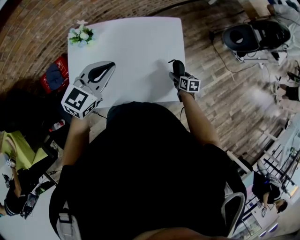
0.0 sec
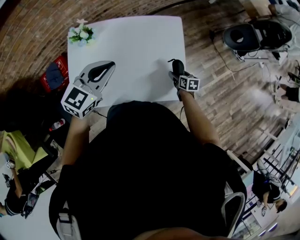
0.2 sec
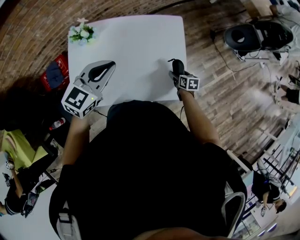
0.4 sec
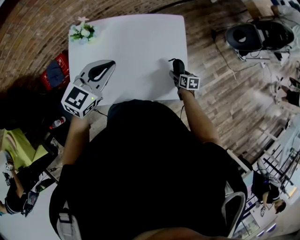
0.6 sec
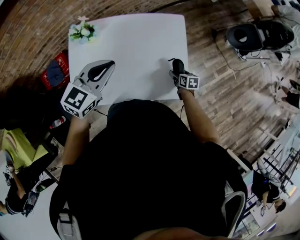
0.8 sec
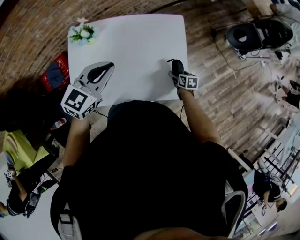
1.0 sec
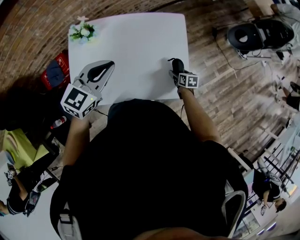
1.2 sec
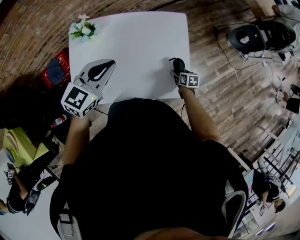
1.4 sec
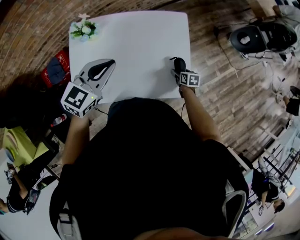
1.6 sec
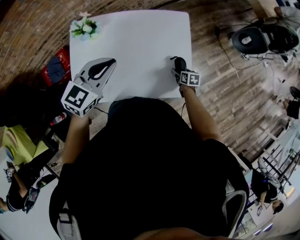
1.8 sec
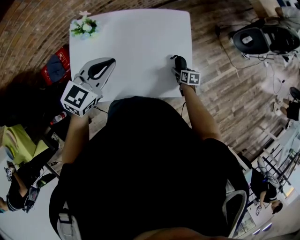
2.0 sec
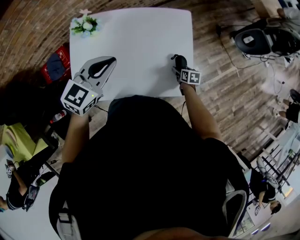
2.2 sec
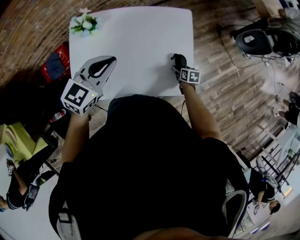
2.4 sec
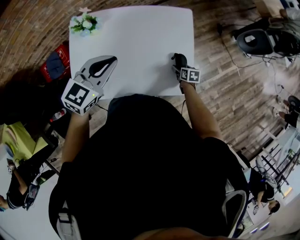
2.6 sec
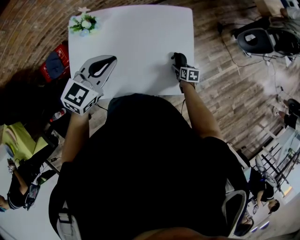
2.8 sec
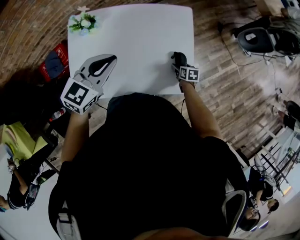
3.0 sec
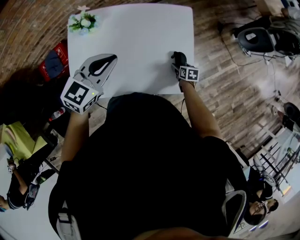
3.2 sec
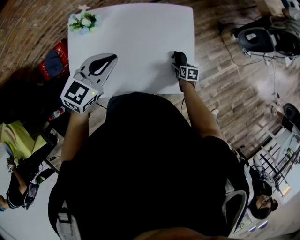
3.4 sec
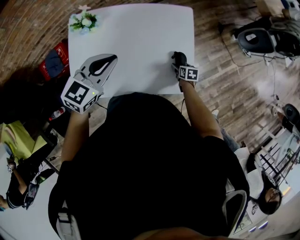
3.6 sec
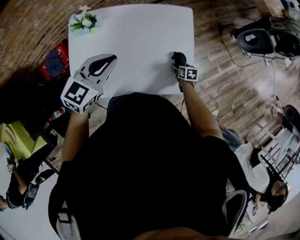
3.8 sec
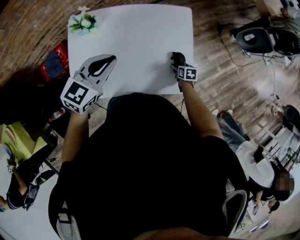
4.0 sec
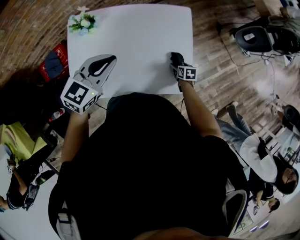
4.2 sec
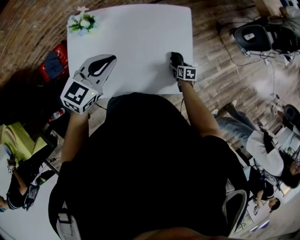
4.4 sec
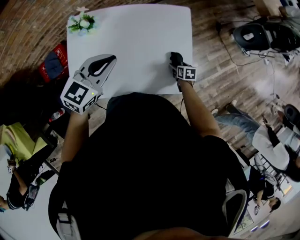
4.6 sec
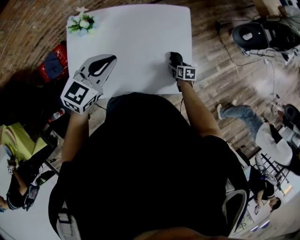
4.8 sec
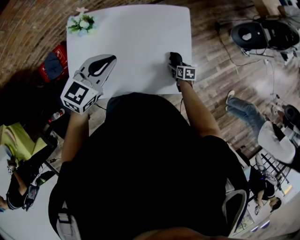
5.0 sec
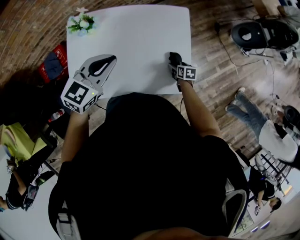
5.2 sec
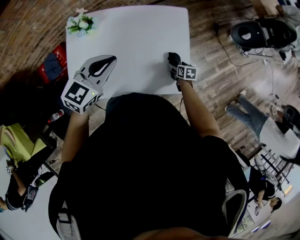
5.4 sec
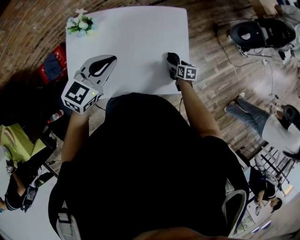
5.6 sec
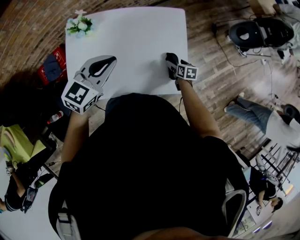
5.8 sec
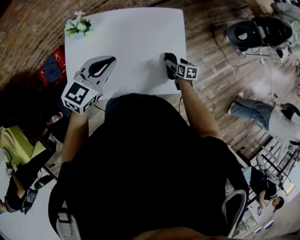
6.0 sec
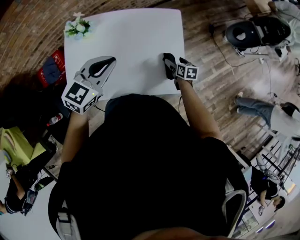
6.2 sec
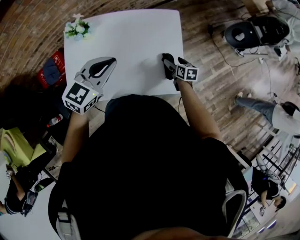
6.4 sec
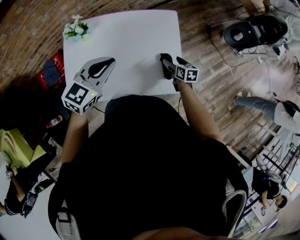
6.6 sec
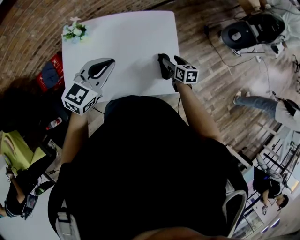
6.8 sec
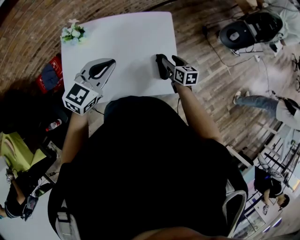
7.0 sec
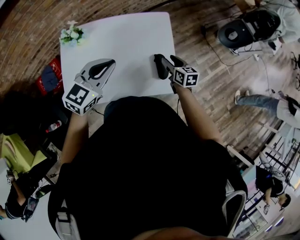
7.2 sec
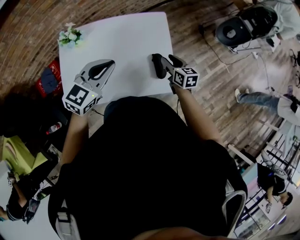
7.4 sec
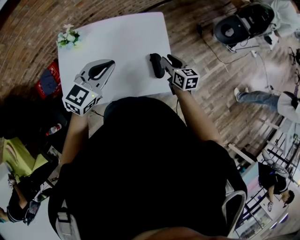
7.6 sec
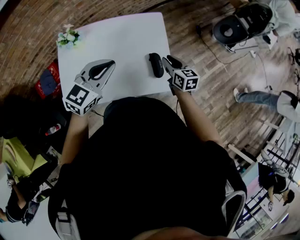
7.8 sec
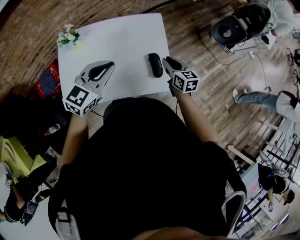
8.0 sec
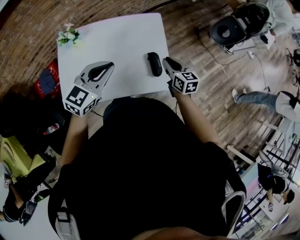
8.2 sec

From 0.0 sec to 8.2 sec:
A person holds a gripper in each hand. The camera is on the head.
From 0.0 sec to 1.6 sec: The grippers stay close to where they were, moving slightly.
From 1.6 sec to 3.2 sec: The grippers make only small movements.
From 3.2 sec to 5.0 sec: Neither gripper changes place.
From 5.0 sec to 6.6 sec: The right gripper shifts about 10 cm upward.
From 6.6 sec to 8.2 sec: The right gripper moves upward and backward, approximately 15 cm, and closes. The left gripper goes about 5 cm to the right.

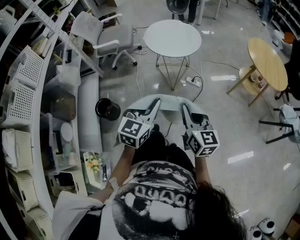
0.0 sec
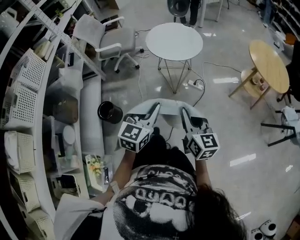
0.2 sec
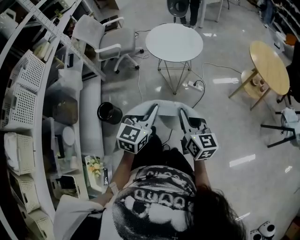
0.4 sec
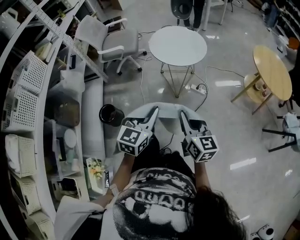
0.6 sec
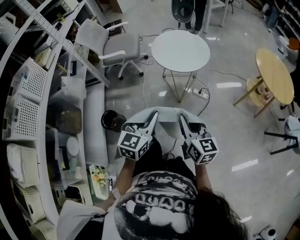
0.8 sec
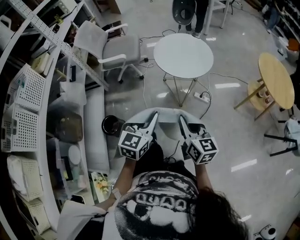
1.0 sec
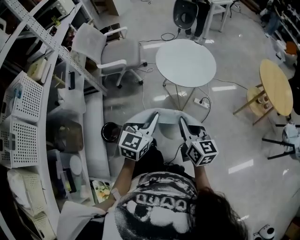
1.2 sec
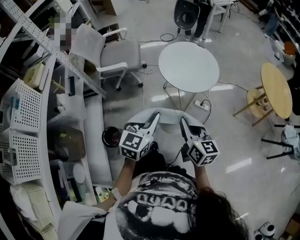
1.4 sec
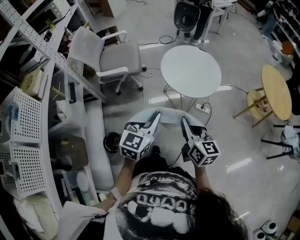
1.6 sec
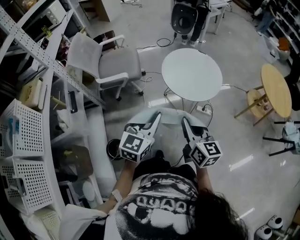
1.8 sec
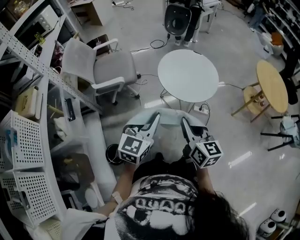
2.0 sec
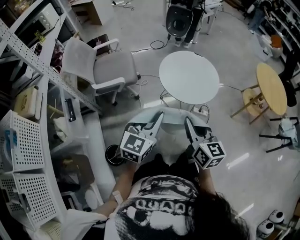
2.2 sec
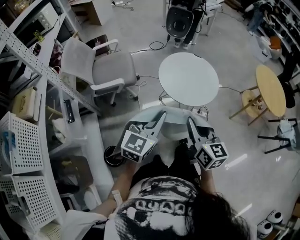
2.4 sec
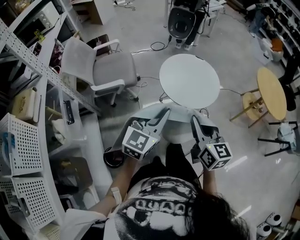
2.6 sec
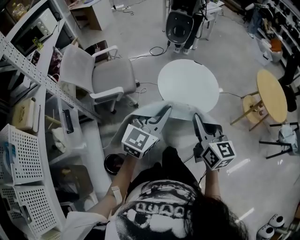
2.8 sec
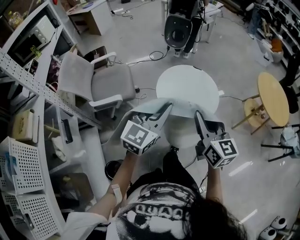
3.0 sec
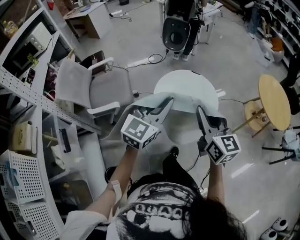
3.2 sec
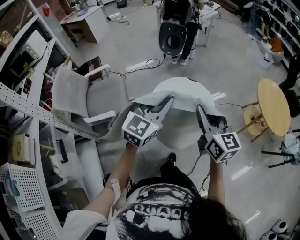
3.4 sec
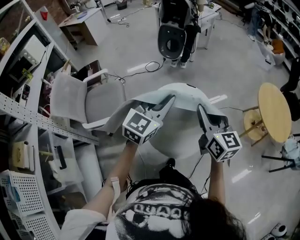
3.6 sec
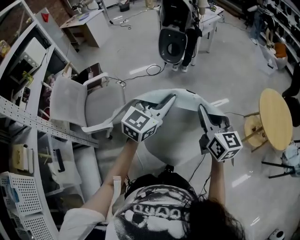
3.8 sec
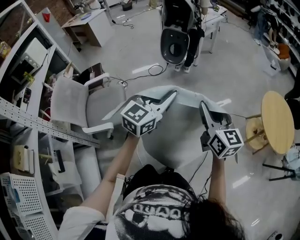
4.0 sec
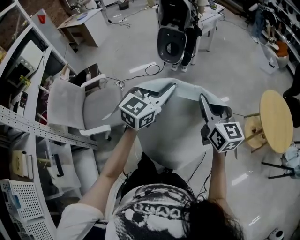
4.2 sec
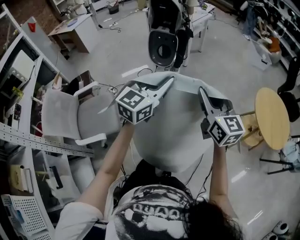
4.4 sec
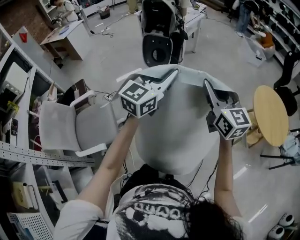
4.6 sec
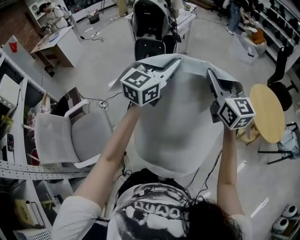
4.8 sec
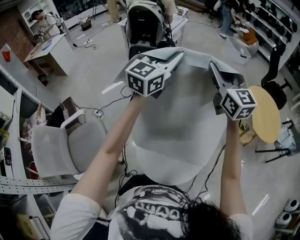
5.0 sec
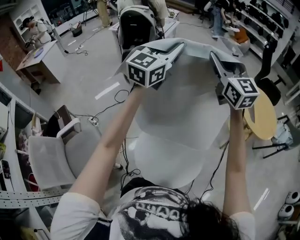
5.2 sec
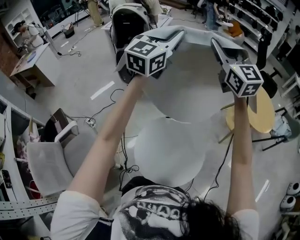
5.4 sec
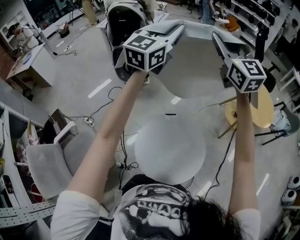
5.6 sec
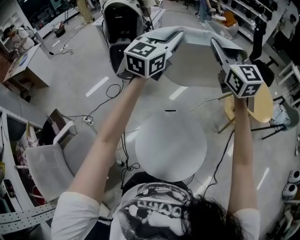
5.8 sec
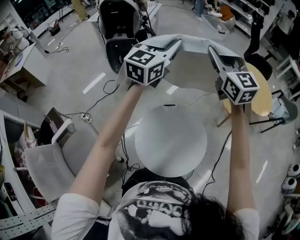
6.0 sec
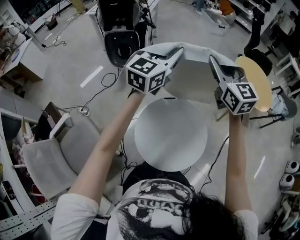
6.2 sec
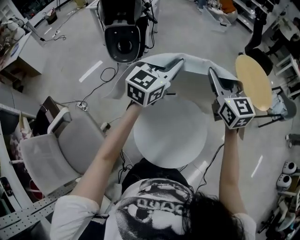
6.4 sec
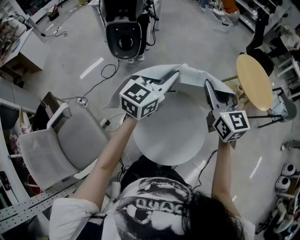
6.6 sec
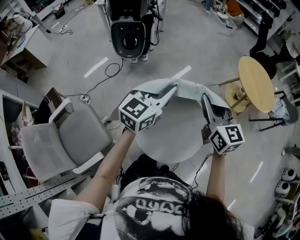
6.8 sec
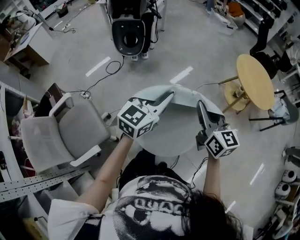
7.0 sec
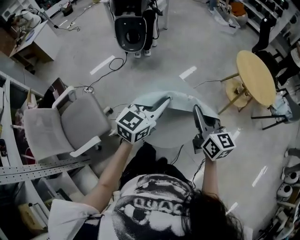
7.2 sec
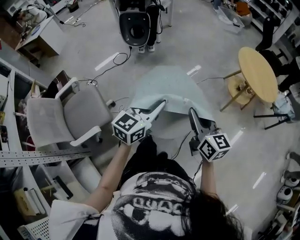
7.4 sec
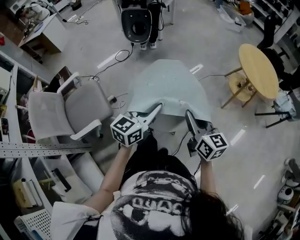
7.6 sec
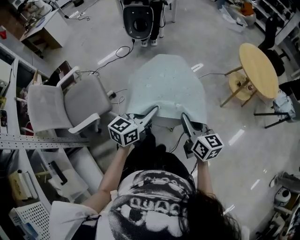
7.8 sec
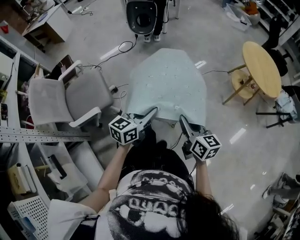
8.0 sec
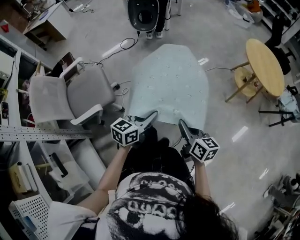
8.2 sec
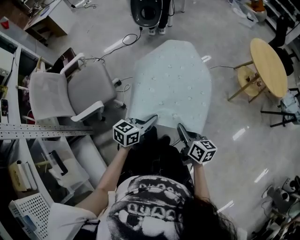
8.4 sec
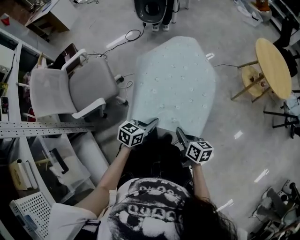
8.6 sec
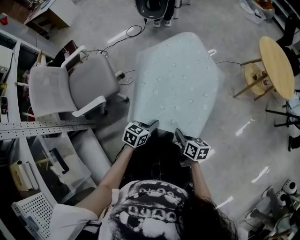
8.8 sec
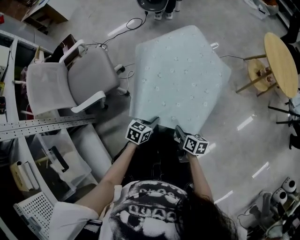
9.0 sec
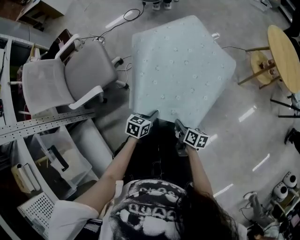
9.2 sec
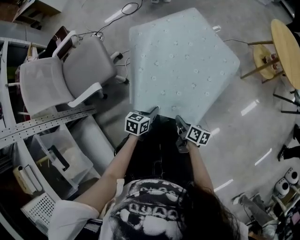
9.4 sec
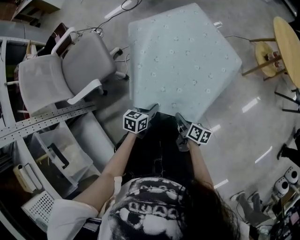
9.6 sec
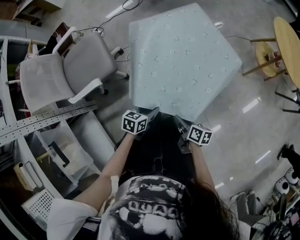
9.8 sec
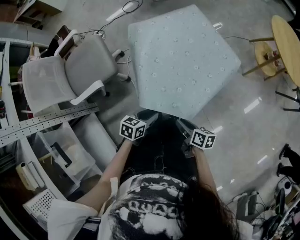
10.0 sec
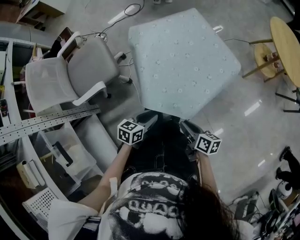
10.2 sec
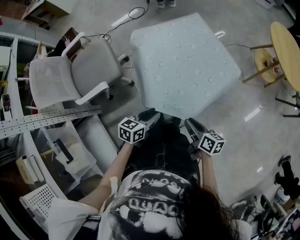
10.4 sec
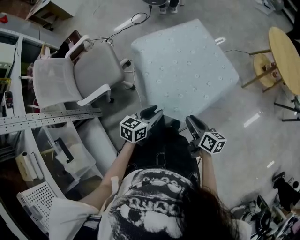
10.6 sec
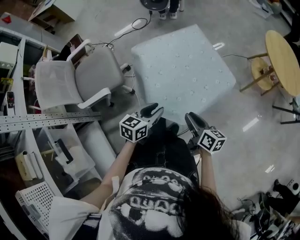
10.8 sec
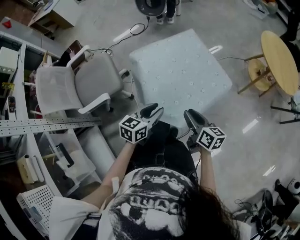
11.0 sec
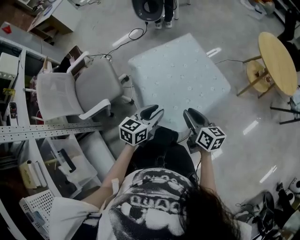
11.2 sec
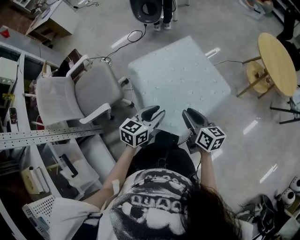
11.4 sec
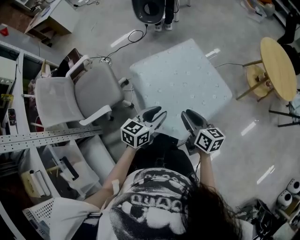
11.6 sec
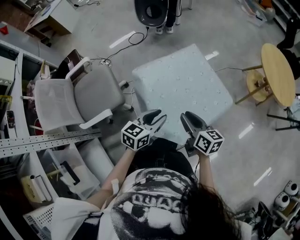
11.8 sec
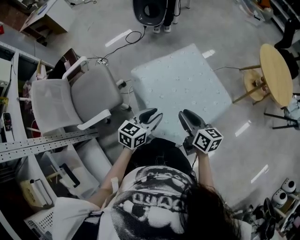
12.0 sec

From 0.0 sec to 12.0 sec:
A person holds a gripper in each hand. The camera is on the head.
From 0.0 sec to 1.6 sec: The two grippers go some 30 cm forward and to the left.
From 1.6 sec to 3.0 sec: Both grippers move forward and upward, approximately 20 cm.
From 3.0 sec to 4.4 sec: Both grippers move forward, approximately 35 cm.
From 4.4 sec to 6.0 sec: The right gripper is displaced forward and upward by roughly 20 cm, and rotates about 30 degrees. Meanwhile the left gripper shifts about 20 cm forward, and rotates roughly 20 degrees.
From 6.0 sec to 7.6 sec: Both grippers are carried backward, about 40 cm. The two grippers go some 25 cm downward. The left gripper changes its angle by approximately 30 degrees. The right gripper rotates roughly 40 degrees.
From 7.6 sec to 9.0 sec: The two grippers go roughly 30 cm downward and backward. The left gripper points its fingers some 30 degrees further downward. The right gripper rotates roughly 40 degrees.
From 9.0 sec to 10.4 sec: Both grippers travel together upward, approximately 5 cm.
From 10.4 sec to 12.0 sec: The left gripper is displaced forward and upward by about 20 cm. The right gripper shifts some 25 cm forward, upward and to the left.

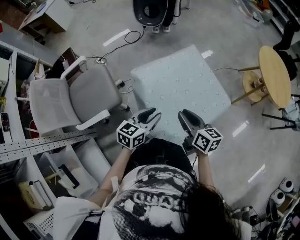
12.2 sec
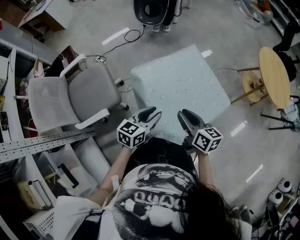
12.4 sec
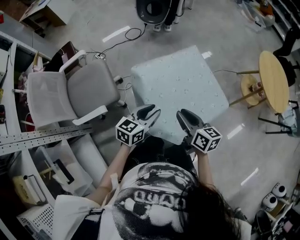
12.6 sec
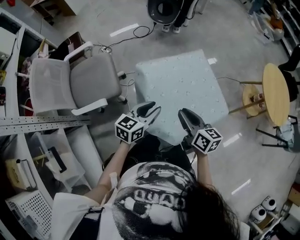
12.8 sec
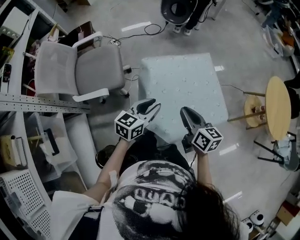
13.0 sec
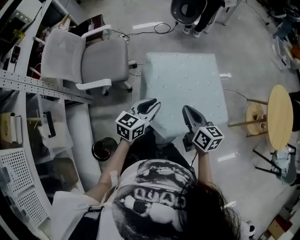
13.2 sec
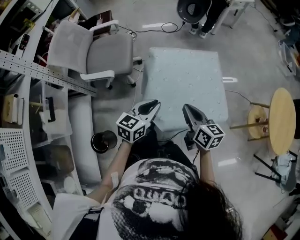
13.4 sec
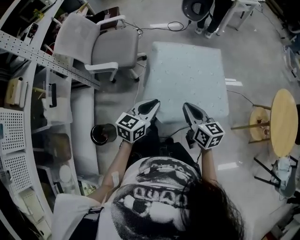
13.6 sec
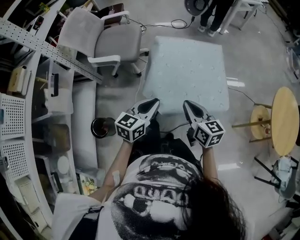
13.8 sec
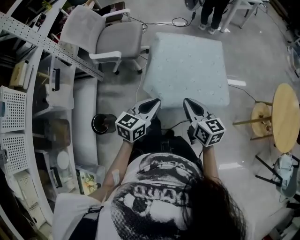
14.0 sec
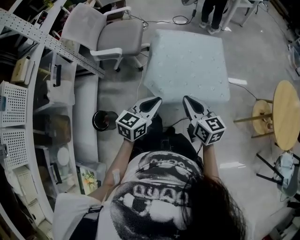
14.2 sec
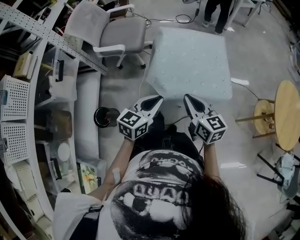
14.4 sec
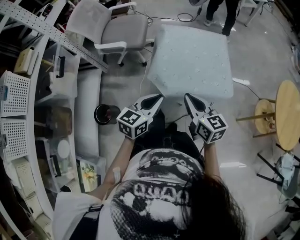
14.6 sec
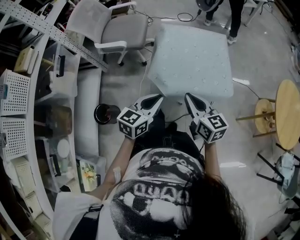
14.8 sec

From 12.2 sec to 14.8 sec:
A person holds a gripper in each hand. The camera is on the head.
From 12.2 sec to 13.4 sec: The left gripper changes place by some 10 cm, and swivels about 30 degrees. The right gripper ends up approximately 5 cm from where it was, changes its angle by some 30 degrees, and closes its fingers.
From 13.4 sec to 14.8 sec: Both grippers travel together backward, some 15 cm.

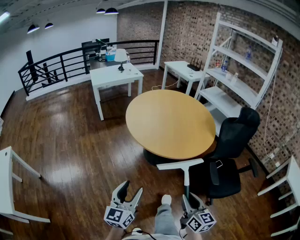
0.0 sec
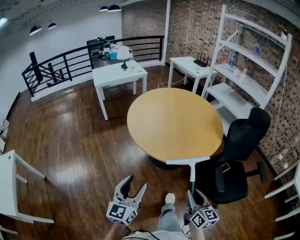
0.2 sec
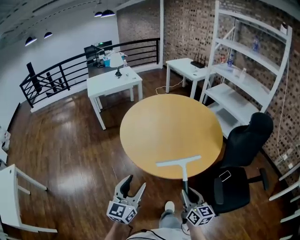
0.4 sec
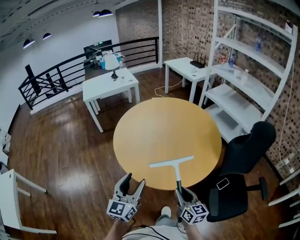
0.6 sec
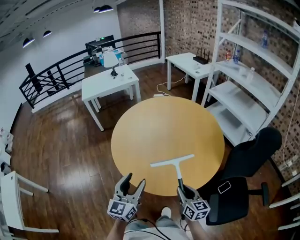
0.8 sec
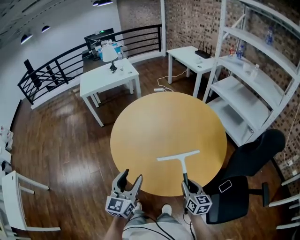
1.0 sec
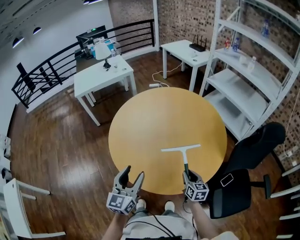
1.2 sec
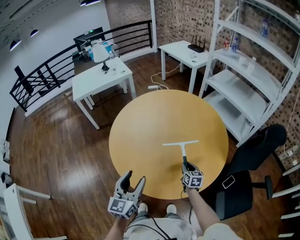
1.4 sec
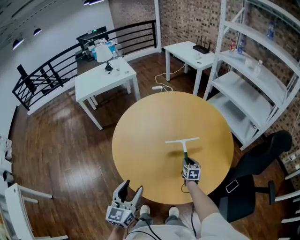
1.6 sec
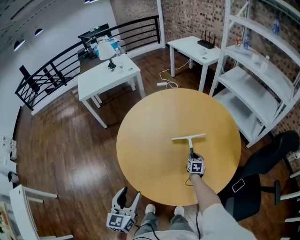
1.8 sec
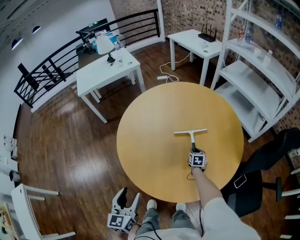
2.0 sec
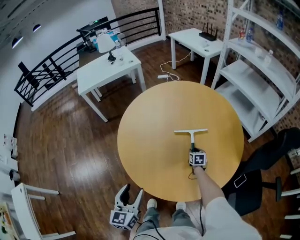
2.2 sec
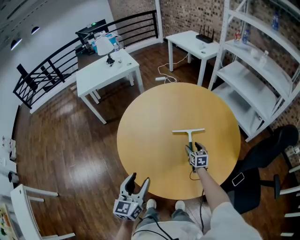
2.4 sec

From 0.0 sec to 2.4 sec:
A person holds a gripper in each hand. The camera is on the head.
From 0.0 sec to 1.2 sec: The pair of grippers is taken forward, about 50 cm.
From 1.2 sec to 2.4 sec: The left gripper heads to the left, covering about 5 cm. Meanwhile the right gripper heads forward and downward, covering some 25 cm, and opens up.
